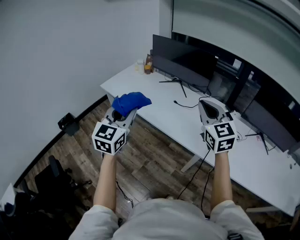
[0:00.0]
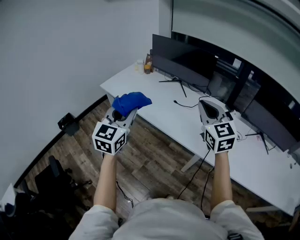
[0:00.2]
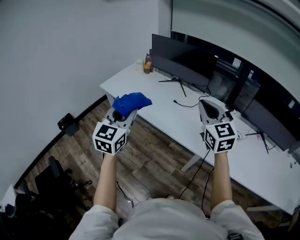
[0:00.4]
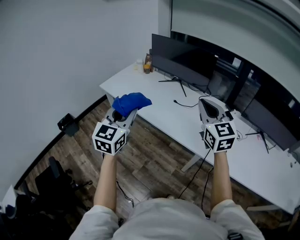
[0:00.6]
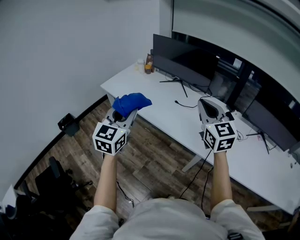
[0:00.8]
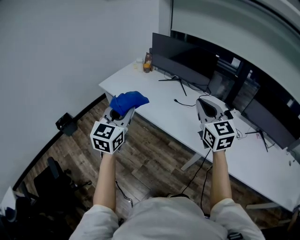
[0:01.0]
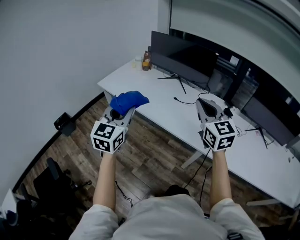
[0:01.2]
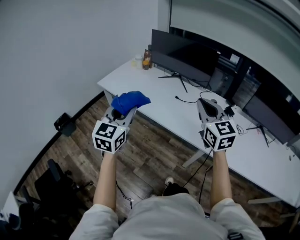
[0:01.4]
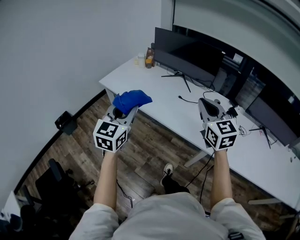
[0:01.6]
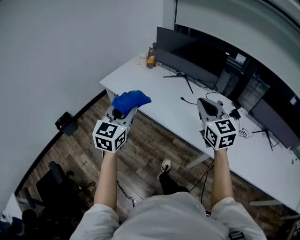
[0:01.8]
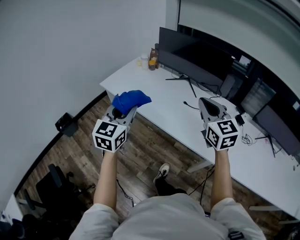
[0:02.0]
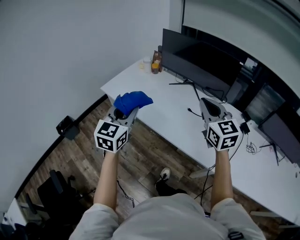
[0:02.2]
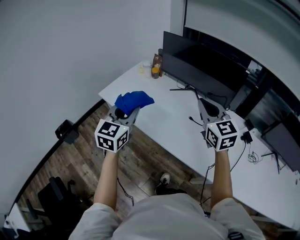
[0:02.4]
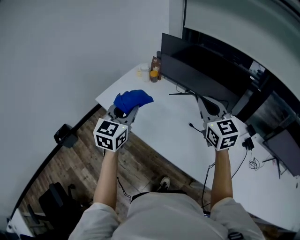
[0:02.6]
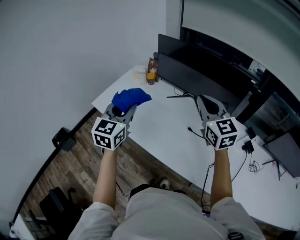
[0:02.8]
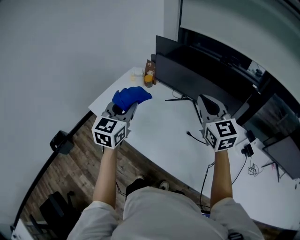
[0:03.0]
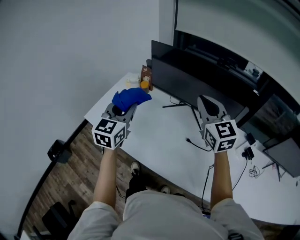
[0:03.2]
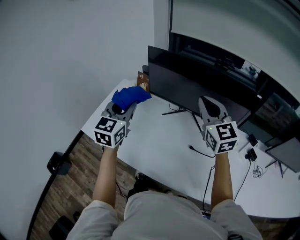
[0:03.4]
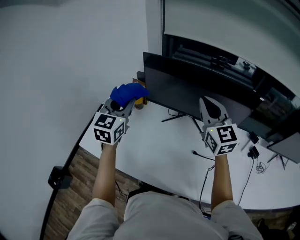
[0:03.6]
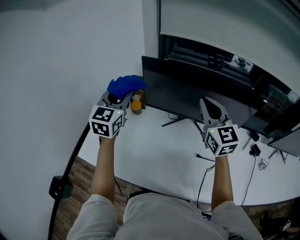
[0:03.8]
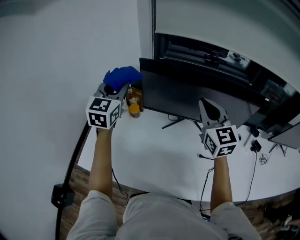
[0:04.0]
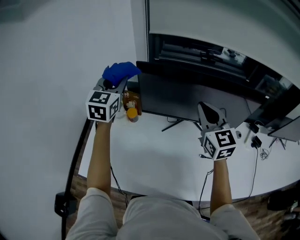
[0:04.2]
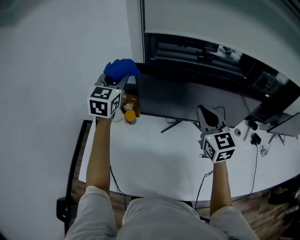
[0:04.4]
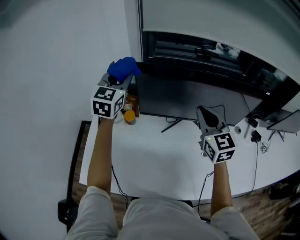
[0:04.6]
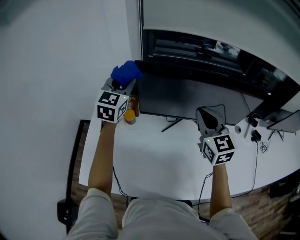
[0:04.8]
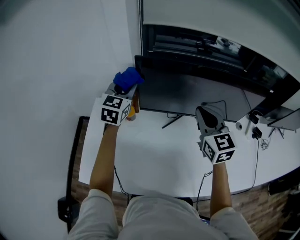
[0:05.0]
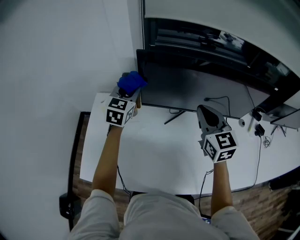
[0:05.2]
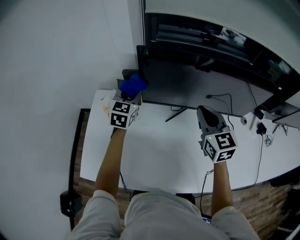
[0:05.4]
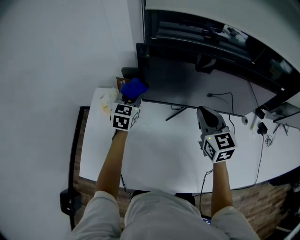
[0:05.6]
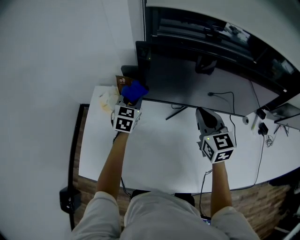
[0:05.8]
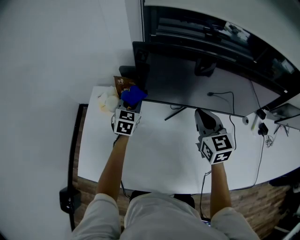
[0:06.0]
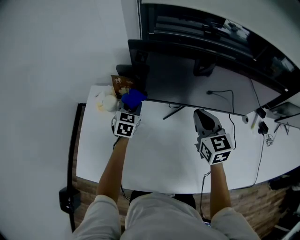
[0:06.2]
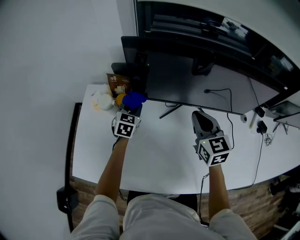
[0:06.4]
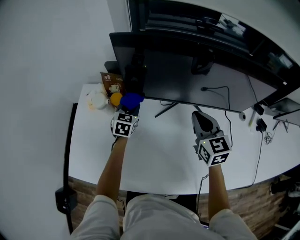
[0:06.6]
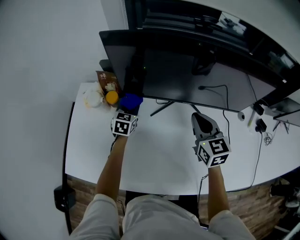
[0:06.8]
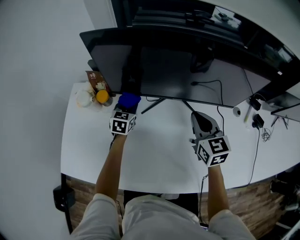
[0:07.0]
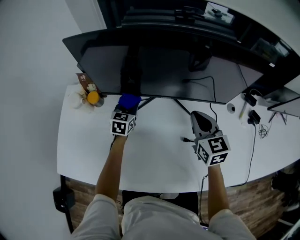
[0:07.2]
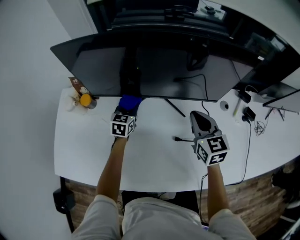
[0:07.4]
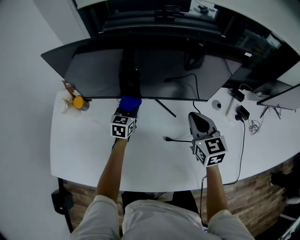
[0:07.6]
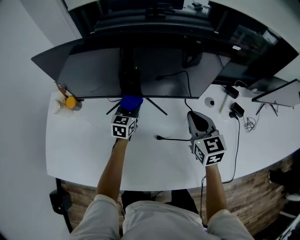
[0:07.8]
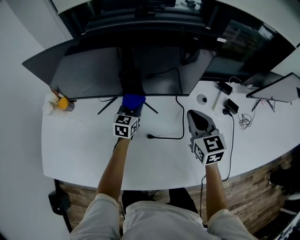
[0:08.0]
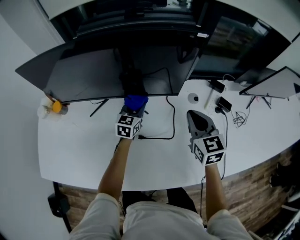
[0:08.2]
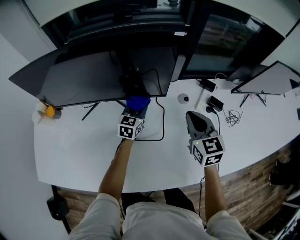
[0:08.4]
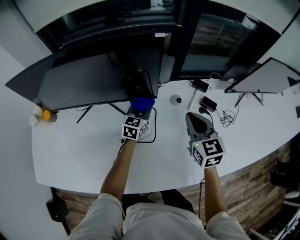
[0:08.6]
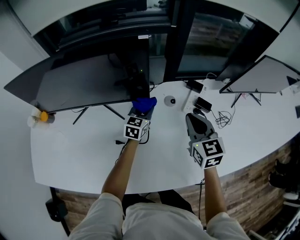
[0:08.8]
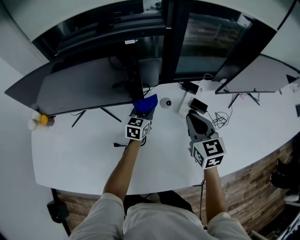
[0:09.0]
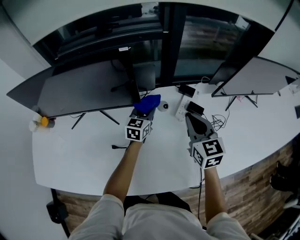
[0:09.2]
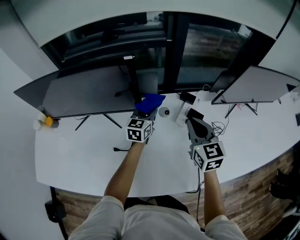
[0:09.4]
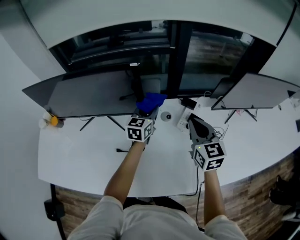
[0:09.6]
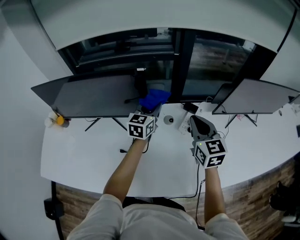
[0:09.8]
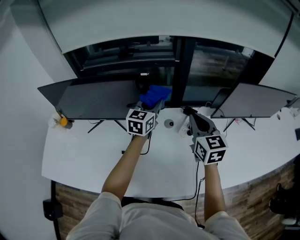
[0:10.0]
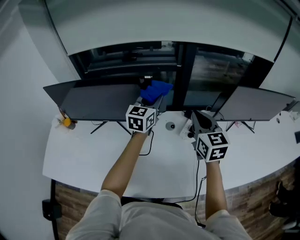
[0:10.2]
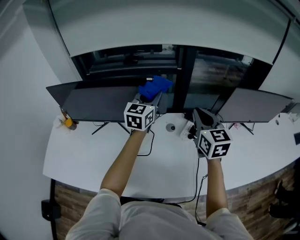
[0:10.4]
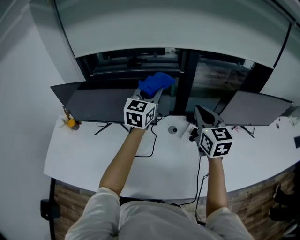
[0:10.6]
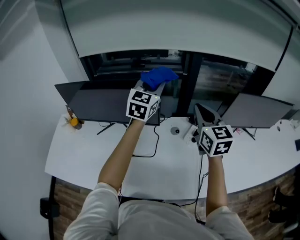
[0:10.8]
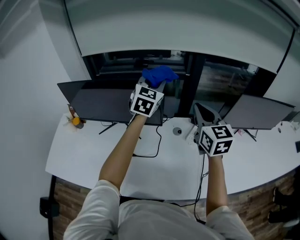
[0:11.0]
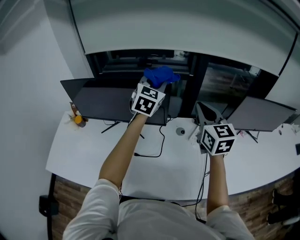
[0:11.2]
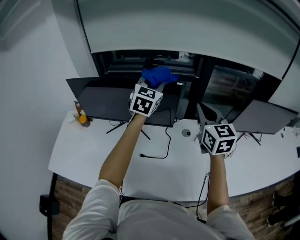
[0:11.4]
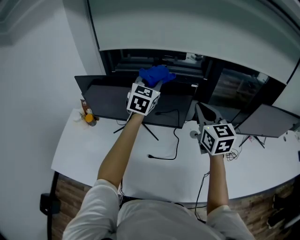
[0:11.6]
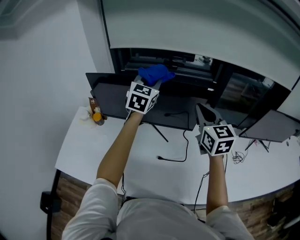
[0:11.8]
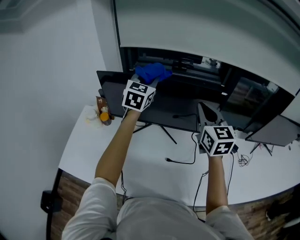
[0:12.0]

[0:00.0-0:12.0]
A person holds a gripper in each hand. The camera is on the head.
0:00.0 to 0:01.6: Both grippers move to the left, about 5 cm.
0:01.6 to 0:03.0: The two grippers go some 40 cm forward.
0:03.0 to 0:04.4: The right gripper shifts by some 25 cm, and turns by some 30 degrees; the left gripper moves roughly 50 cm, and changes its angle by some 20 degrees.
0:04.4 to 0:06.0: The right gripper heads downward, covering roughly 10 cm. Meanwhile the left gripper shifts about 30 cm downward, and rotates approximately 20 degrees.
0:06.0 to 0:07.6: Both grippers travel together to the right, approximately 25 cm.
0:07.6 to 0:09.0: The grippers both shift to the right by about 35 cm.
0:09.0 to 0:10.4: The right gripper is displaced upward by approximately 20 cm, while the left gripper is displaced upward by some 35 cm, and rotates about 20 degrees.
0:10.4 to 0:12.0: The grippers both shift to the left by approximately 35 cm.

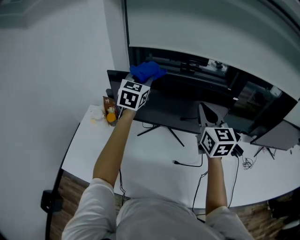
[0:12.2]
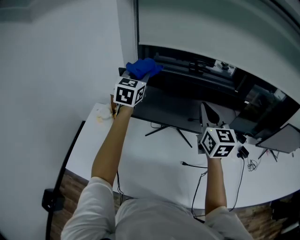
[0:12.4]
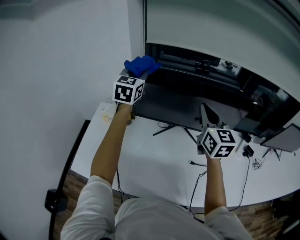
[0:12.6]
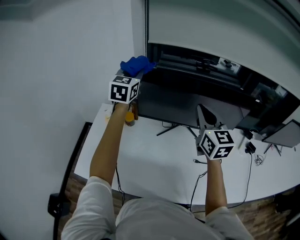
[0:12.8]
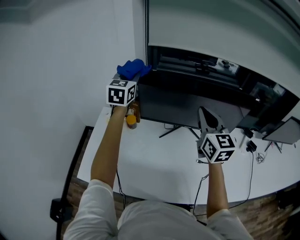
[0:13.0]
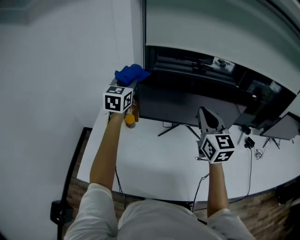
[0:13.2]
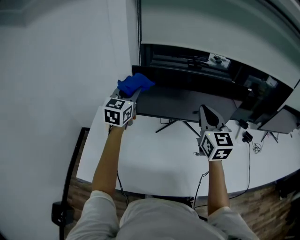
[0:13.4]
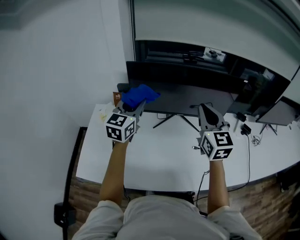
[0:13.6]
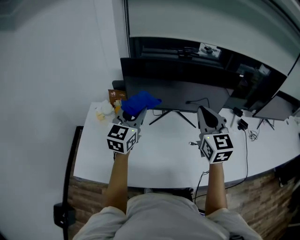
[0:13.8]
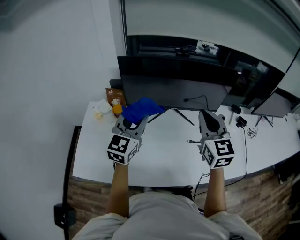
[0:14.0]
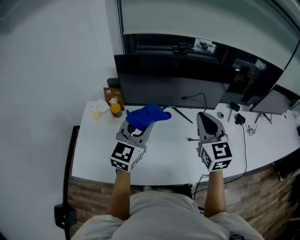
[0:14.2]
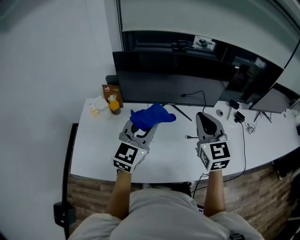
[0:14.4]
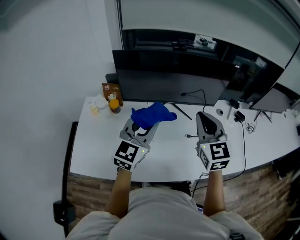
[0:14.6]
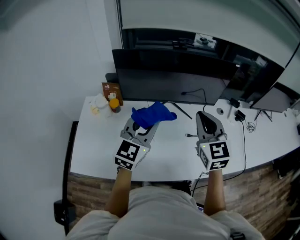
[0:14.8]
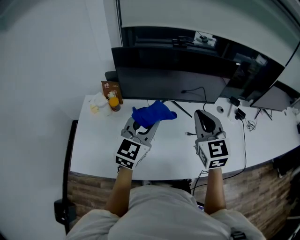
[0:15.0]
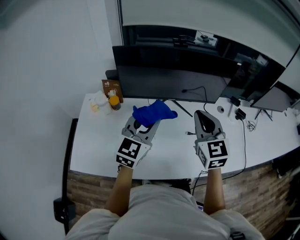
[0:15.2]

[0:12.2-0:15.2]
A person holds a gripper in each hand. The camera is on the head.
0:12.2 to 0:13.8: The left gripper travels backward, to the left and downward by about 25 cm. The right gripper shifts approximately 15 cm to the left and backward.
0:13.8 to 0:15.2: The right gripper shifts by roughly 5 cm. Meanwhile the left gripper travels to the right and backward by roughly 10 cm.

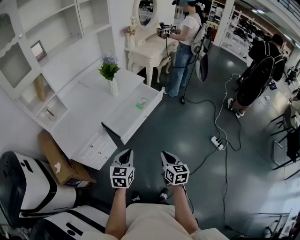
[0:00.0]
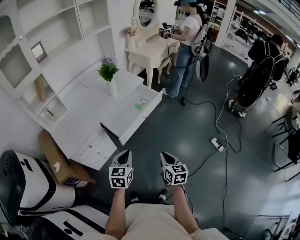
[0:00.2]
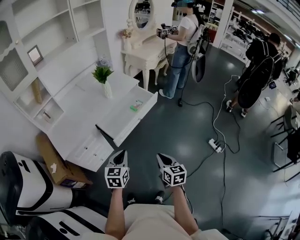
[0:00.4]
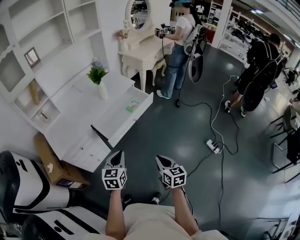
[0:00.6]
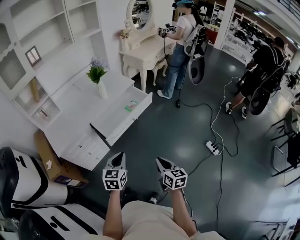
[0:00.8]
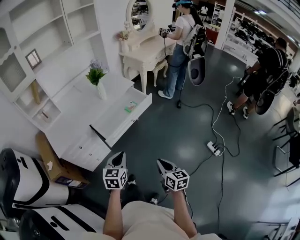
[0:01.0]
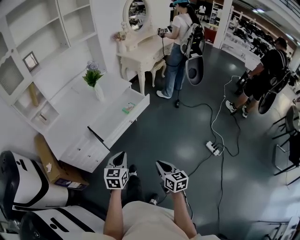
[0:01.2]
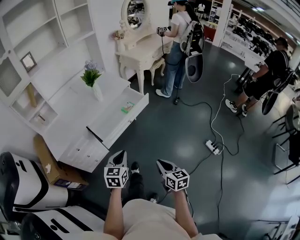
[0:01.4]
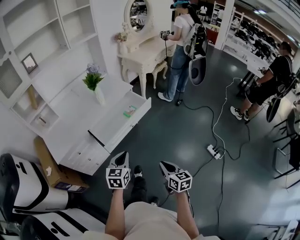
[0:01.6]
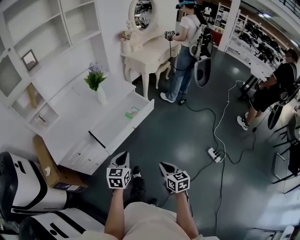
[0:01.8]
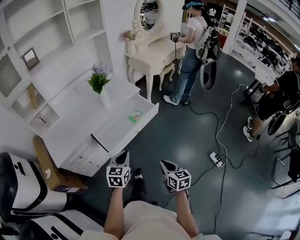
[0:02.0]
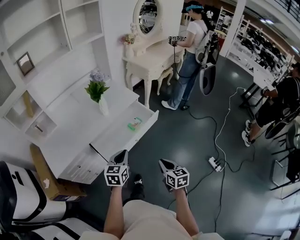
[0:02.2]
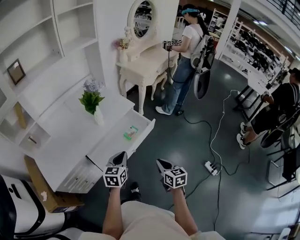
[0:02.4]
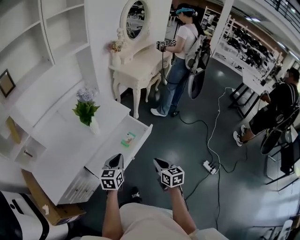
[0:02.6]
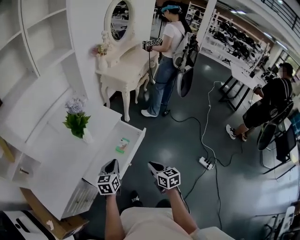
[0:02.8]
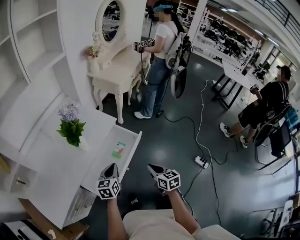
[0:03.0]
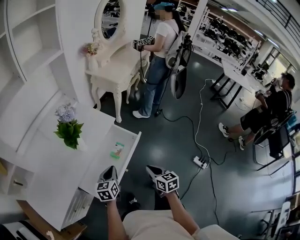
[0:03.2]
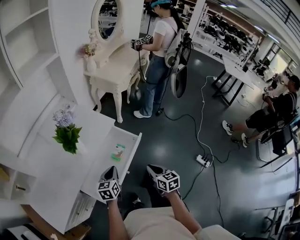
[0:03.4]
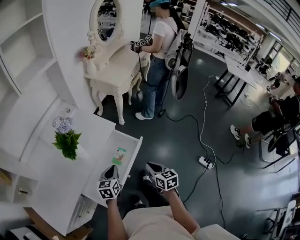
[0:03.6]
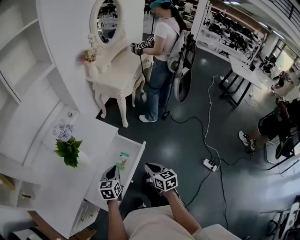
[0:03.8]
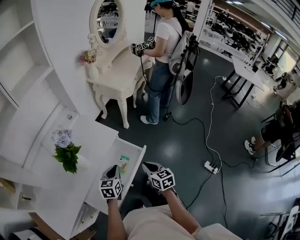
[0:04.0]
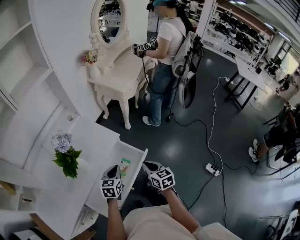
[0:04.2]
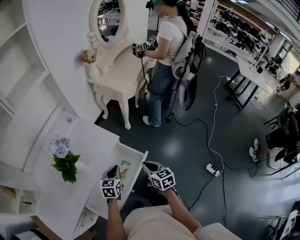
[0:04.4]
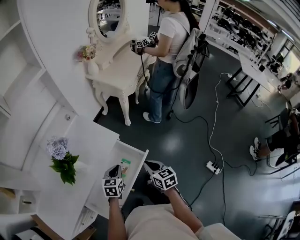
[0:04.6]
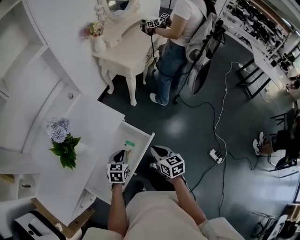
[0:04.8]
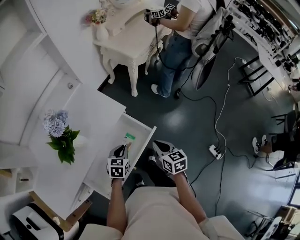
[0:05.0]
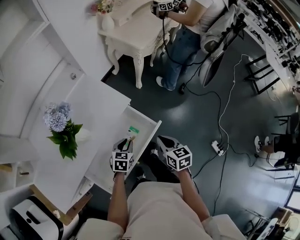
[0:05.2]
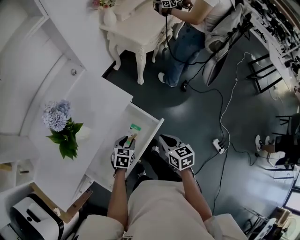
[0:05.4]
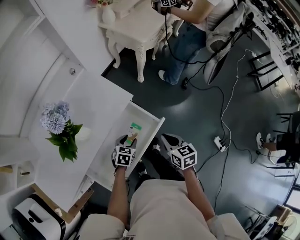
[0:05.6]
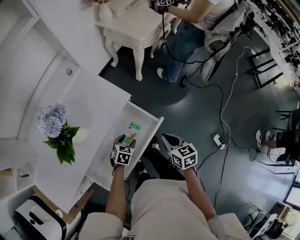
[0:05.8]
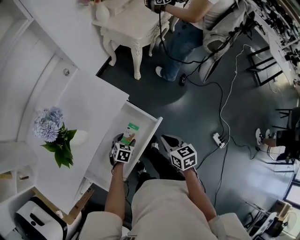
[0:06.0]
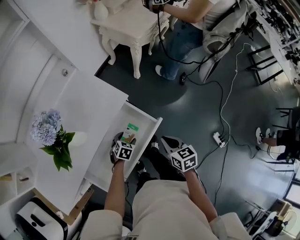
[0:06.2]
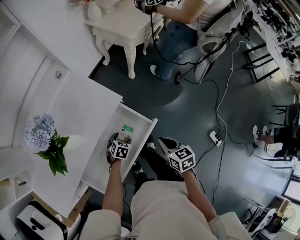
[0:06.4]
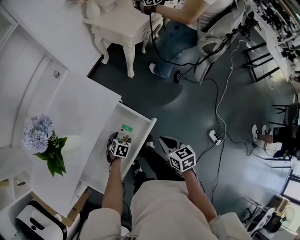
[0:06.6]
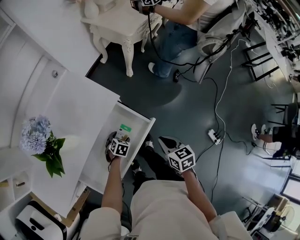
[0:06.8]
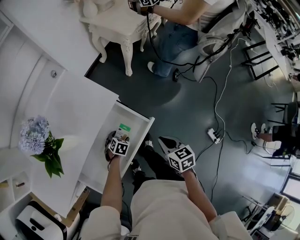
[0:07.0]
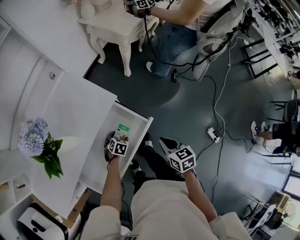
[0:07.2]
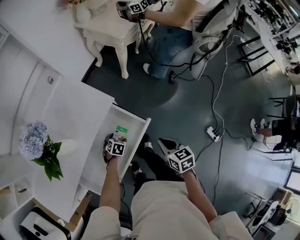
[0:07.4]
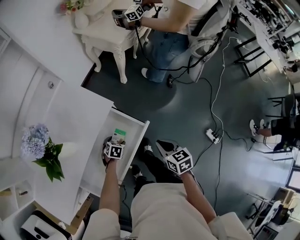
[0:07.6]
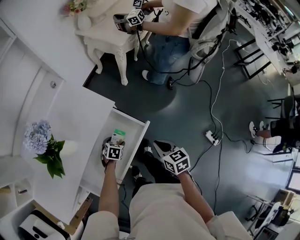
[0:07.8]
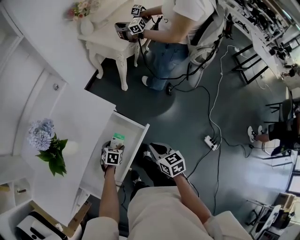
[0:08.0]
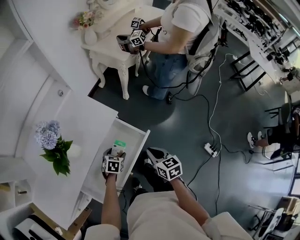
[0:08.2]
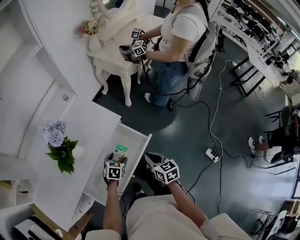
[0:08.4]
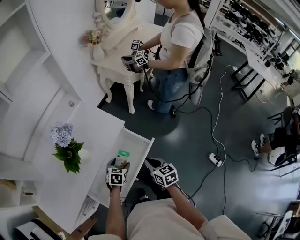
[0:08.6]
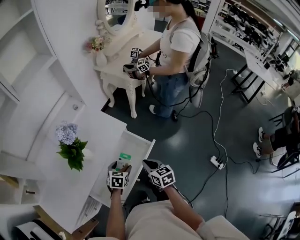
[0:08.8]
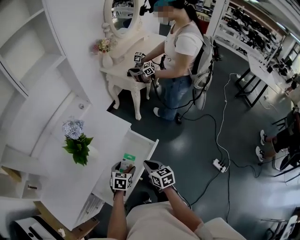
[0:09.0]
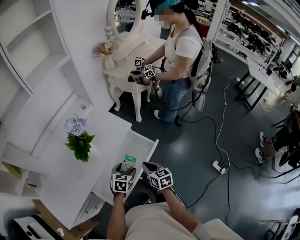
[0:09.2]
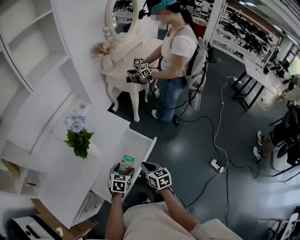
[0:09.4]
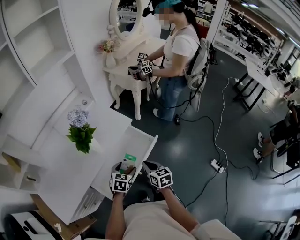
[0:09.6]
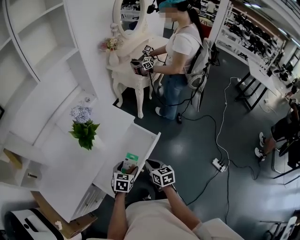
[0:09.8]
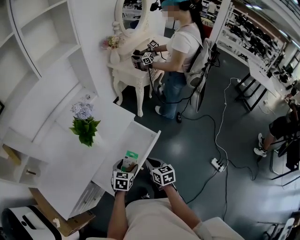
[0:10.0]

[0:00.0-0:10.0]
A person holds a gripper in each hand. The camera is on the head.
0:00.0 to 0:01.4: Both grippers travel together to the right, roughly 15 cm.
0:01.4 to 0:02.8: Both grippers move forward, some 35 cm.
0:02.8 to 0:04.2: The two grippers go roughly 20 cm forward.
0:04.2 to 0:05.8: The right gripper moves downward, about 10 cm. The left gripper is displaced downward by some 20 cm, changes its angle by about 30 degrees, and opens up.
0:05.8 to 0:07.2: The left gripper is displaced downward by some 10 cm. The right gripper shifts by approximately 5 cm.
0:07.2 to 0:08.6: The left gripper heads upward, covering approximately 15 cm. Meanwhile the right gripper moves to the left and upward, about 10 cm.
0:08.6 to 0:10.0: The right gripper is displaced backward and to the left by about 10 cm. Meanwhile the left gripper is displaced upward and backward by approximately 15 cm.
